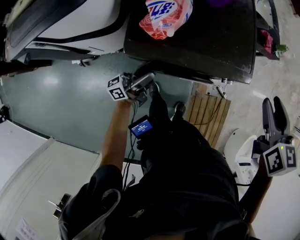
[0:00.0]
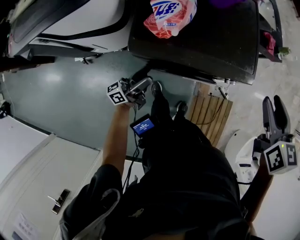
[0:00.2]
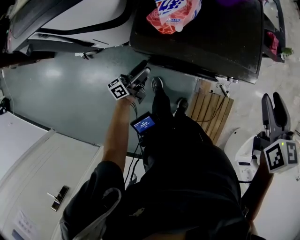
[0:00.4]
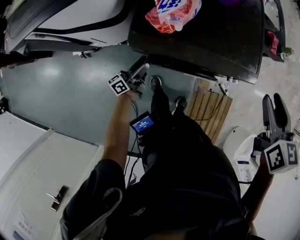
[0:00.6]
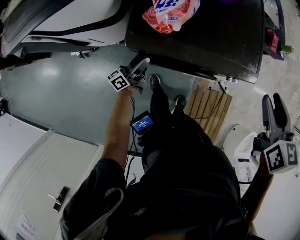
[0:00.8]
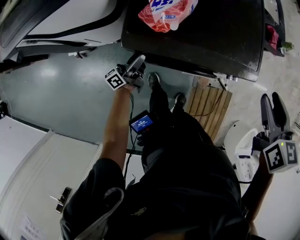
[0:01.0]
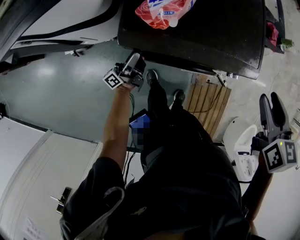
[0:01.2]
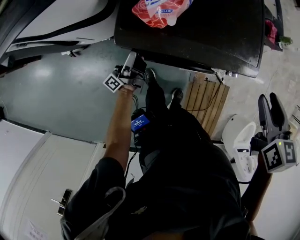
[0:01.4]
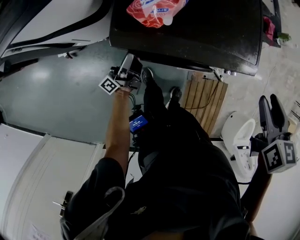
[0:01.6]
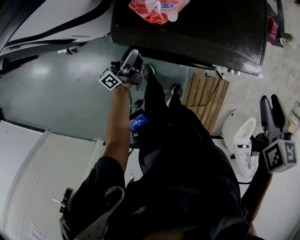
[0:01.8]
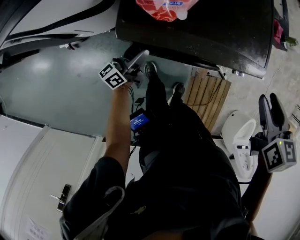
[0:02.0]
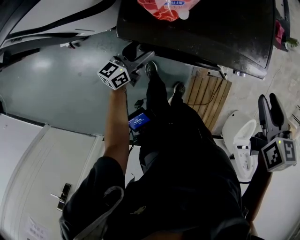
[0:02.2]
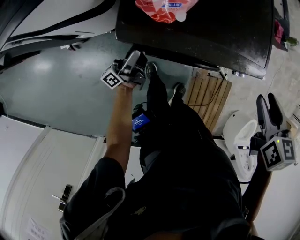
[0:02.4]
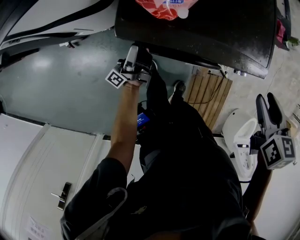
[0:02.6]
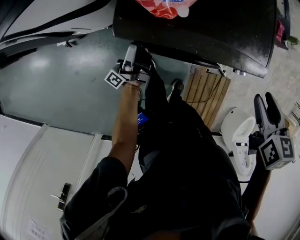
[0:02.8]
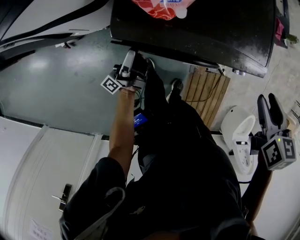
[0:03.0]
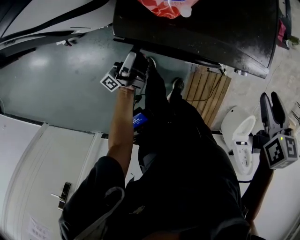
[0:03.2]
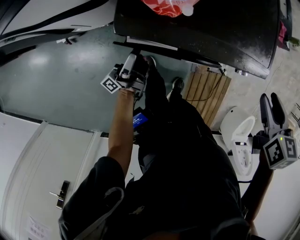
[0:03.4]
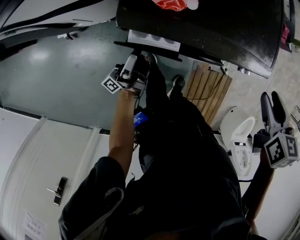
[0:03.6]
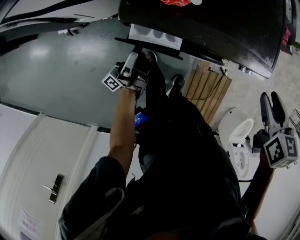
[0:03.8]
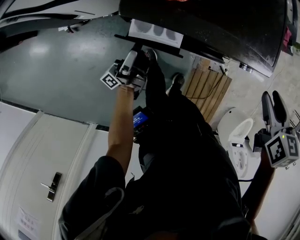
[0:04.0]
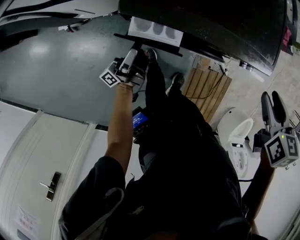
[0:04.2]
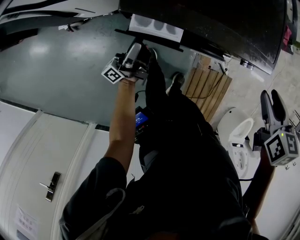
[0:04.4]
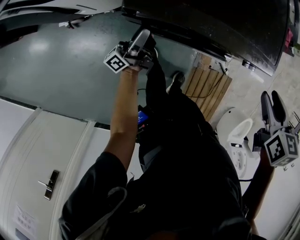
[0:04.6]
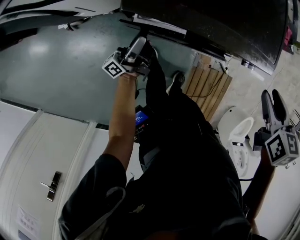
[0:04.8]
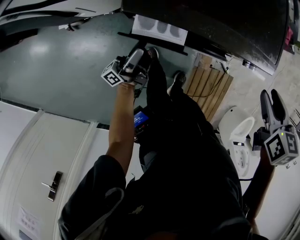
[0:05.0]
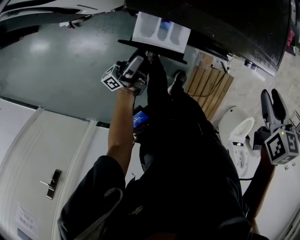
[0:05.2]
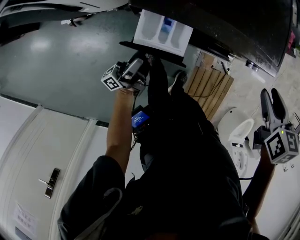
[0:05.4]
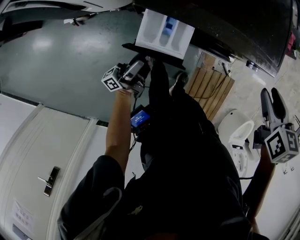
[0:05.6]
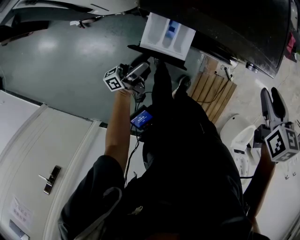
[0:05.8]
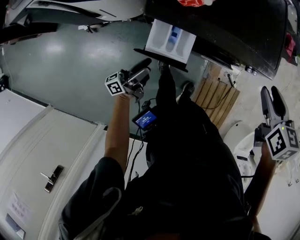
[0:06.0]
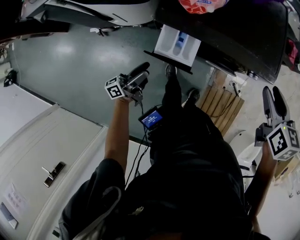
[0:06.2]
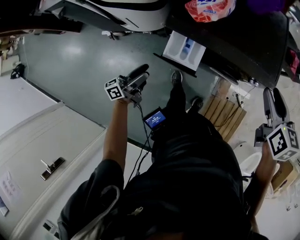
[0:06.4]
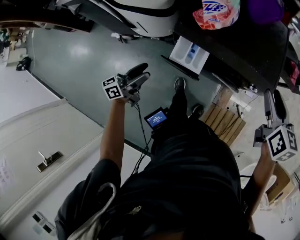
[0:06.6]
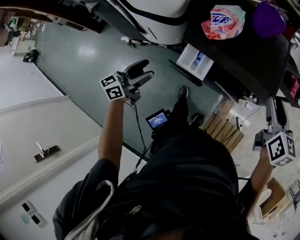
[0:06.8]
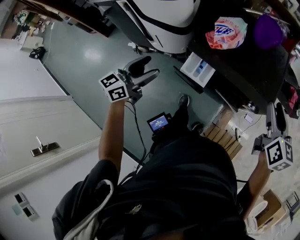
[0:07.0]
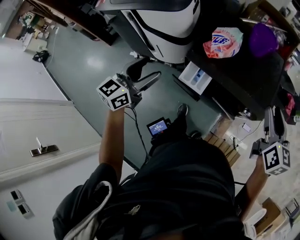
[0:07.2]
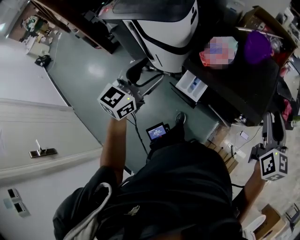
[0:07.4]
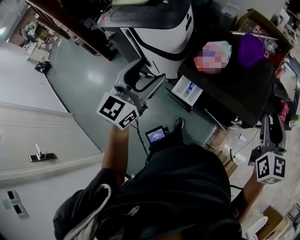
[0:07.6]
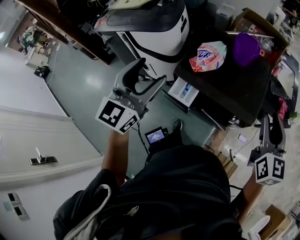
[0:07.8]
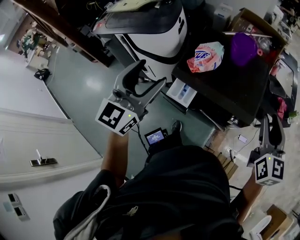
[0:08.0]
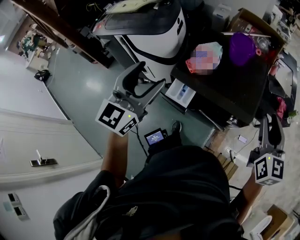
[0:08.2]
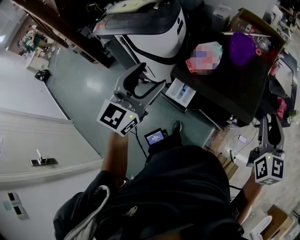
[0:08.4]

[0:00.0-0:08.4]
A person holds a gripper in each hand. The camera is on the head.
0:00.0 to 0:01.4: The right gripper moves downward, roughly 5 cm, while the left gripper travels downward and to the left by some 10 cm, and changes its angle by roughly 30 degrees.
0:01.4 to 0:02.8: The right gripper heads downward, covering about 5 cm.
0:02.8 to 0:04.2: The left gripper is displaced backward by roughly 10 cm.
0:04.2 to 0:05.6: The left gripper travels backward by roughly 5 cm.
0:05.6 to 0:07.0: The left gripper moves upward, roughly 30 cm, and rotates around the line of its fingers by approximately 50 degrees, clockwise from behind. The right gripper moves upward, some 15 cm, and tips its fingers upward by approximately 30 degrees.
0:07.0 to 0:08.4: The right gripper travels upward and to the right by some 10 cm. Meanwhile the left gripper heads upward and to the right, covering roughly 25 cm, and rotates roughly 40 degrees.

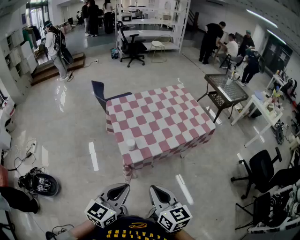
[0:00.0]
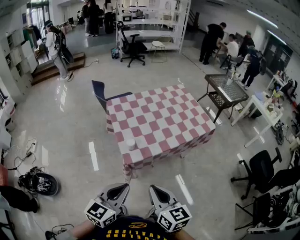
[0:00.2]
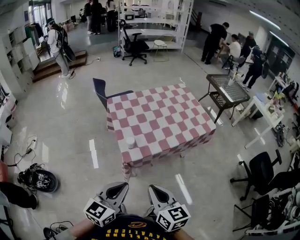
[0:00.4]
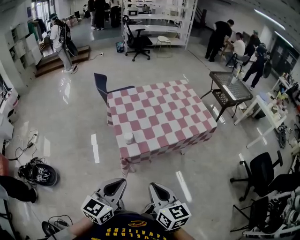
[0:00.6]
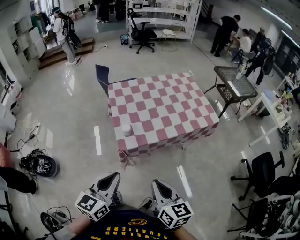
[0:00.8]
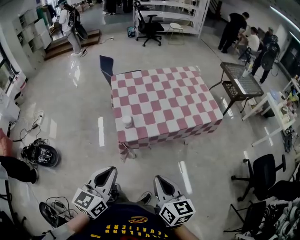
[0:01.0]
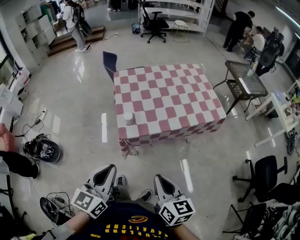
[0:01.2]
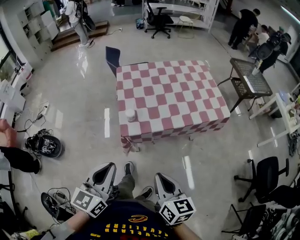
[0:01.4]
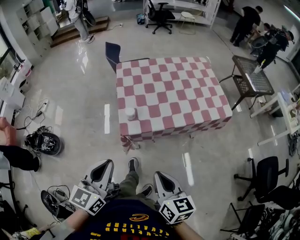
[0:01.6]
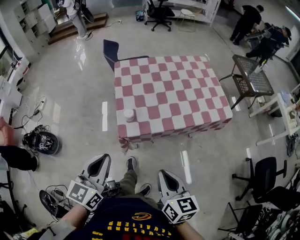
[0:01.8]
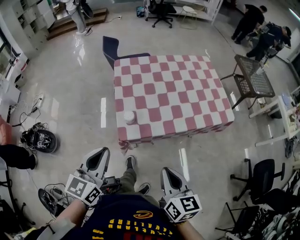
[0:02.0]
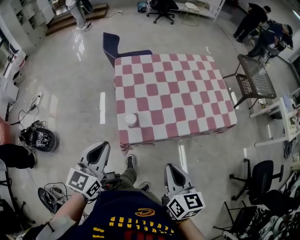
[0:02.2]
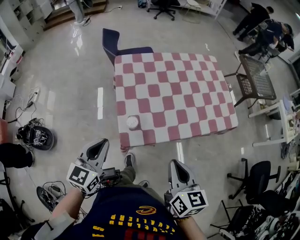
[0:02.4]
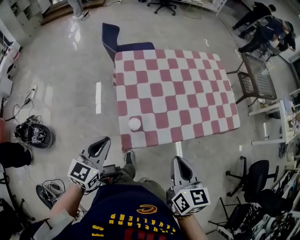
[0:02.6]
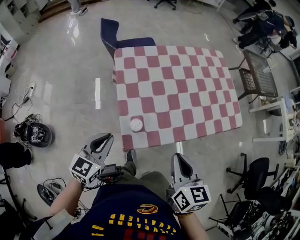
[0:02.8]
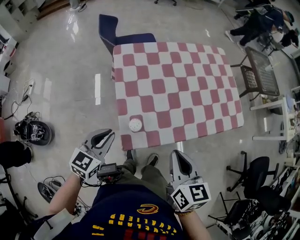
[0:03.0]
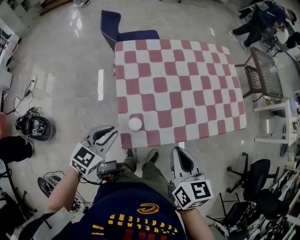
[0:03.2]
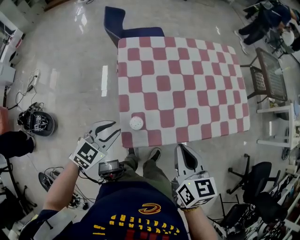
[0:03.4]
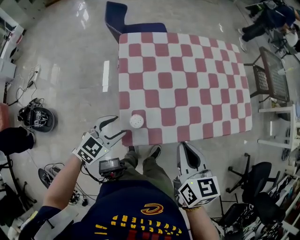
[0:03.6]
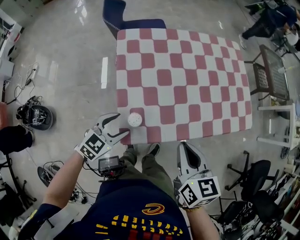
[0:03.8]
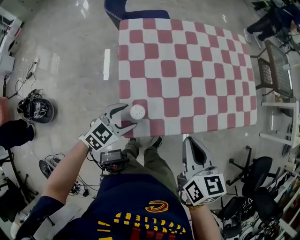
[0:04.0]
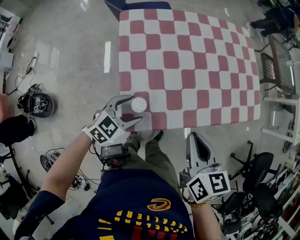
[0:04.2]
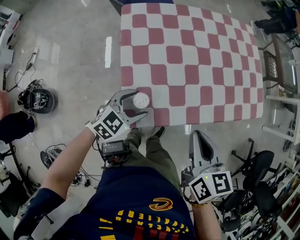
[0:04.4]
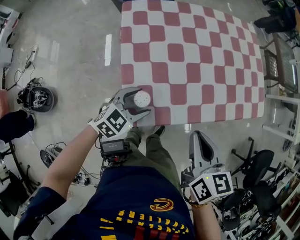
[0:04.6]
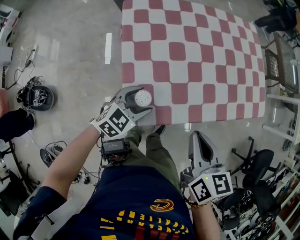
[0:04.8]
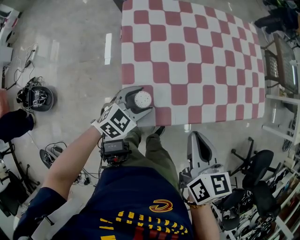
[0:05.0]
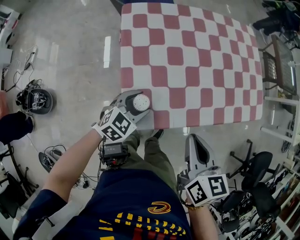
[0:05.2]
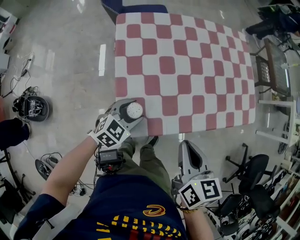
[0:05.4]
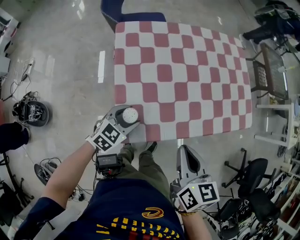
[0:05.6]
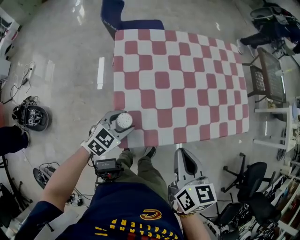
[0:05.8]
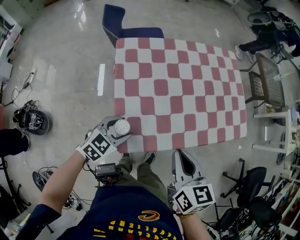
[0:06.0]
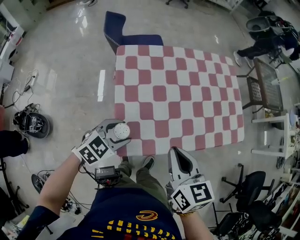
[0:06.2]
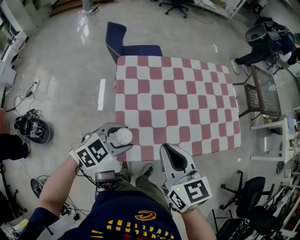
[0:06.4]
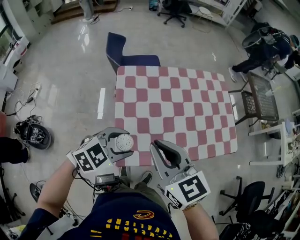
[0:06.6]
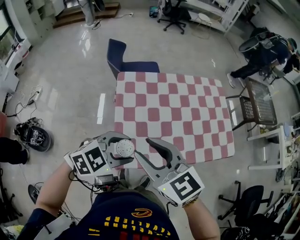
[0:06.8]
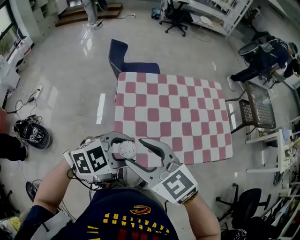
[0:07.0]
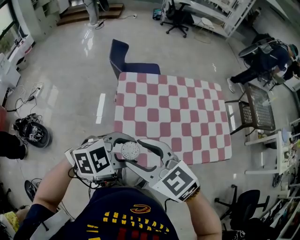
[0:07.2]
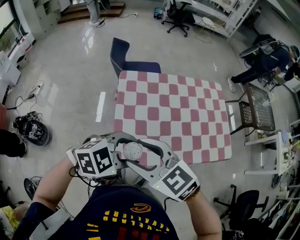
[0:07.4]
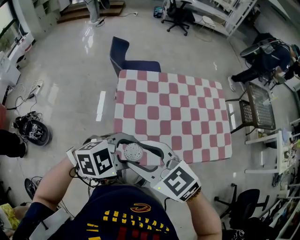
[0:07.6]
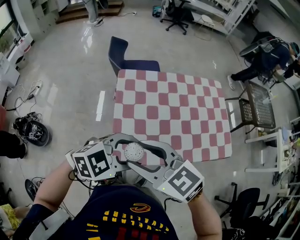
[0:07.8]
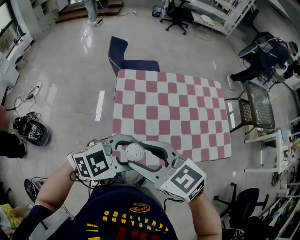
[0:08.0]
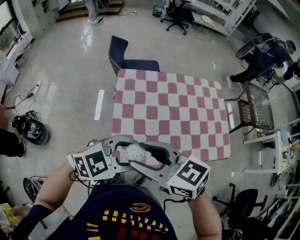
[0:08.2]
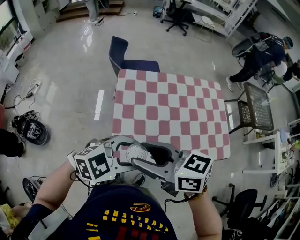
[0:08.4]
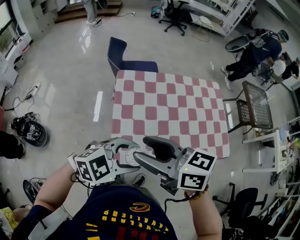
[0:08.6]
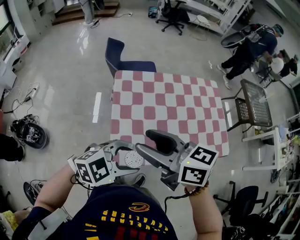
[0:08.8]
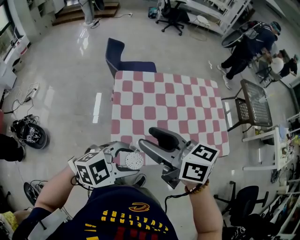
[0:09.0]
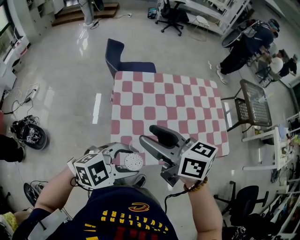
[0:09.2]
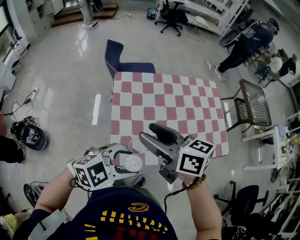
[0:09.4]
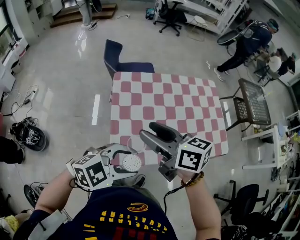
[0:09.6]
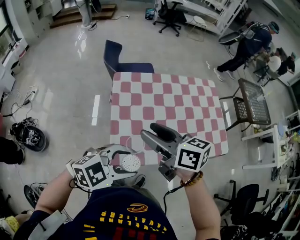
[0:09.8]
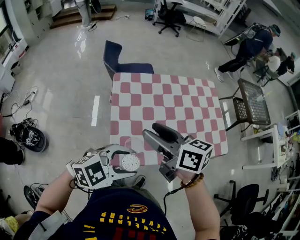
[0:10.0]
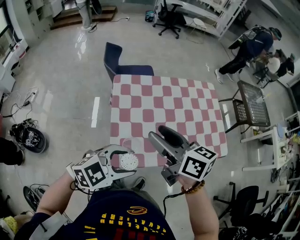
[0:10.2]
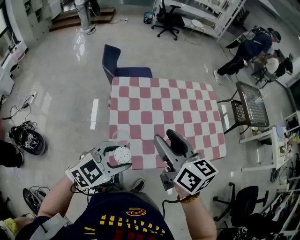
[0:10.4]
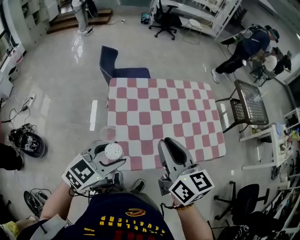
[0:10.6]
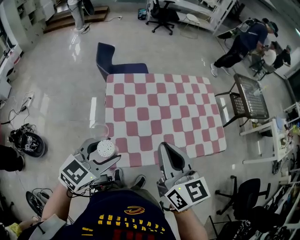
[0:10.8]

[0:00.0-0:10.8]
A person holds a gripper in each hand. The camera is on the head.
0:00.0 to 0:01.6: The right gripper shifts some 10 cm to the right and downward, while the left gripper changes its angle by some 20 degrees.
0:01.6 to 0:03.0: The left gripper shifts approximately 30 cm forward and downward, and swivels about 20 degrees, while the right gripper shifts approximately 25 cm forward.
0:03.0 to 0:04.6: The left gripper goes roughly 15 cm downward, to the right and forward, rotates about 20 degrees, and opens; the right gripper shifts by some 5 cm.
0:04.6 to 0:06.2: The left gripper travels upward by about 10 cm. Meanwhile the right gripper is displaced upward by roughly 5 cm.
0:06.2 to 0:07.8: The right gripper moves approximately 15 cm, rotates roughly 50 degrees, and opens. Meanwhile the left gripper shifts approximately 15 cm upward.
0:07.8 to 0:09.2: The right gripper shifts by roughly 5 cm, and rotates roughly 30 degrees.
0:09.2 to 0:10.8: The right gripper ends up about 10 cm from where it was, turns by approximately 40 degrees, and closes; the left gripper shifts by some 10 cm, and turns by approximately 30 degrees.

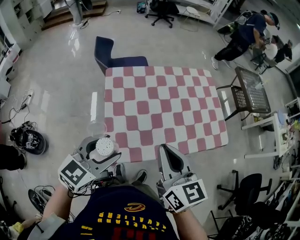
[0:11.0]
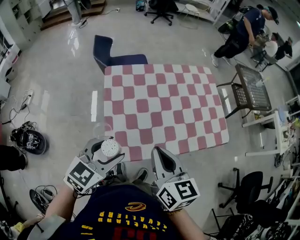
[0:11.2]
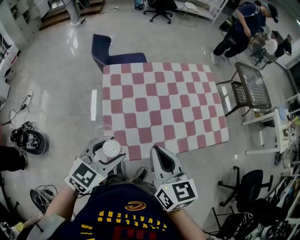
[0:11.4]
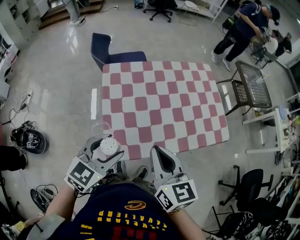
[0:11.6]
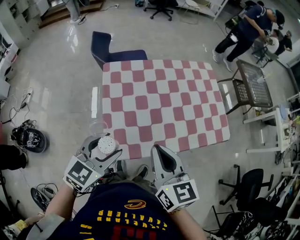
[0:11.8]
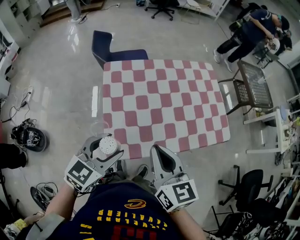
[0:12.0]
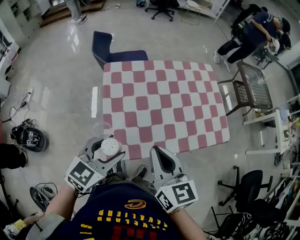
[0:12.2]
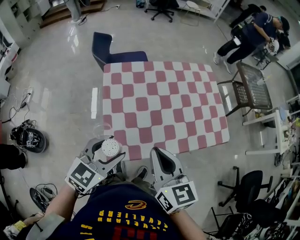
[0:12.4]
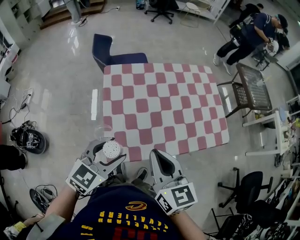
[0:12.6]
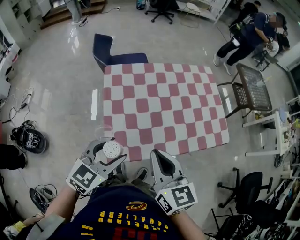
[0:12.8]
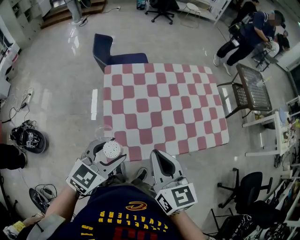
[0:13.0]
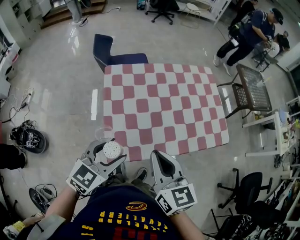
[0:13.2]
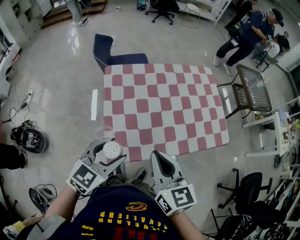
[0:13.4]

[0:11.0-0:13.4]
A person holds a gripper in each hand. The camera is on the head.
0:11.0 to 0:12.2: The grippers make only small movements.
0:12.2 to 0:13.4: The two grippers keep their place.

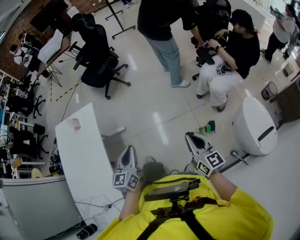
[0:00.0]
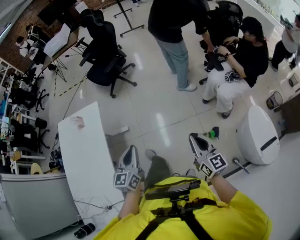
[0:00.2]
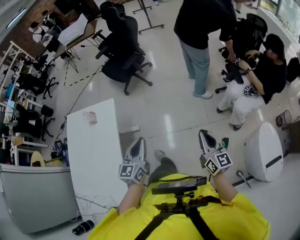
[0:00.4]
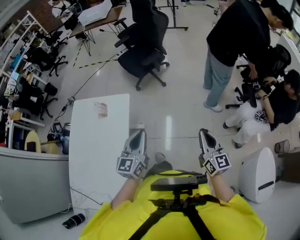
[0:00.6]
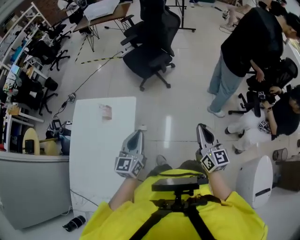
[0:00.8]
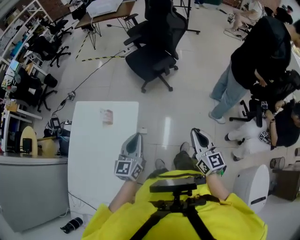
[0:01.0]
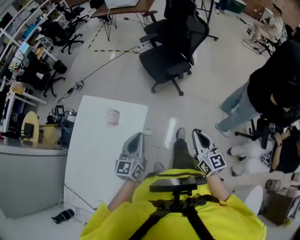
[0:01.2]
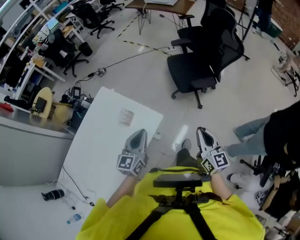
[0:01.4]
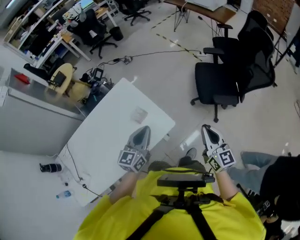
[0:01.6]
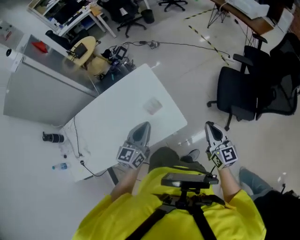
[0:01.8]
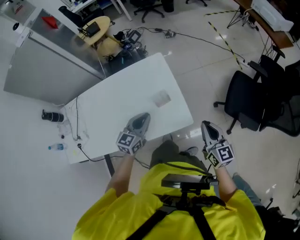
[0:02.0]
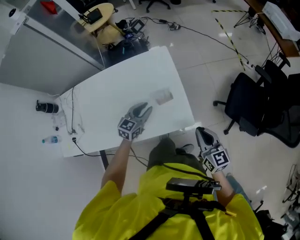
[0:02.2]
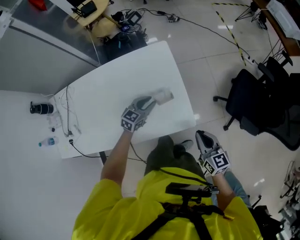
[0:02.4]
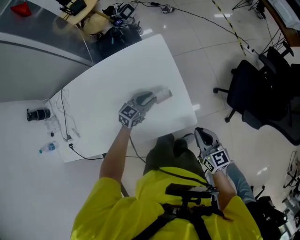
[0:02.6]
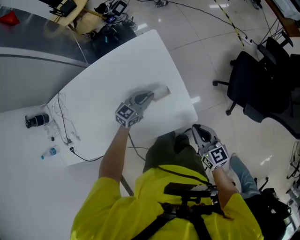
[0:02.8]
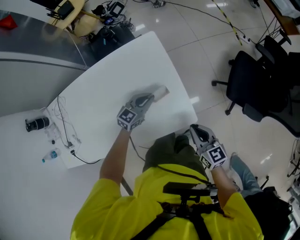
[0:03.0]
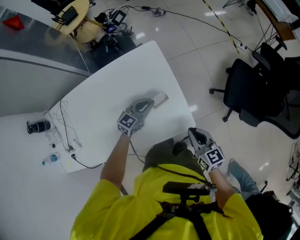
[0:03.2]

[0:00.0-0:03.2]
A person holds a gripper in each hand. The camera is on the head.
0:00.0 to 0:01.6: The two grippers travel together, some 70 cm. The right gripper rotates about 50 degrees. The left gripper changes its angle by some 50 degrees.
0:01.6 to 0:03.2: The left gripper is displaced downward, forward and to the left by roughly 30 cm, and opens, then closes once more, while the right gripper moves to the left, forward and downward, approximately 25 cm, and turns by about 40 degrees.
